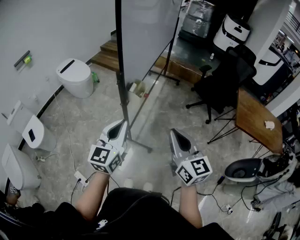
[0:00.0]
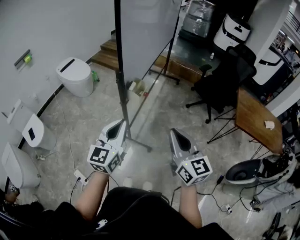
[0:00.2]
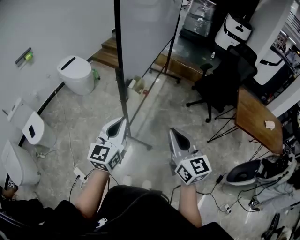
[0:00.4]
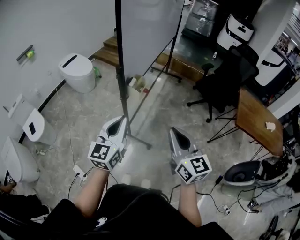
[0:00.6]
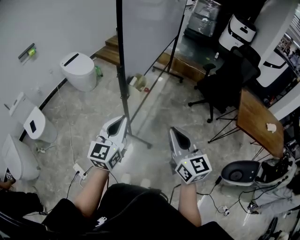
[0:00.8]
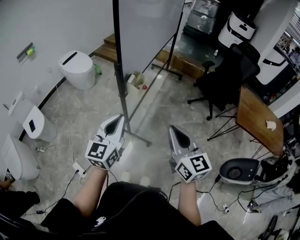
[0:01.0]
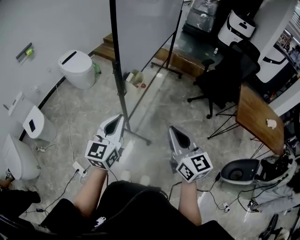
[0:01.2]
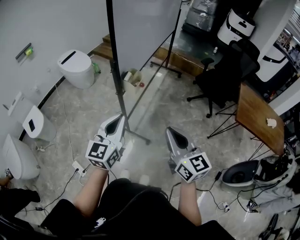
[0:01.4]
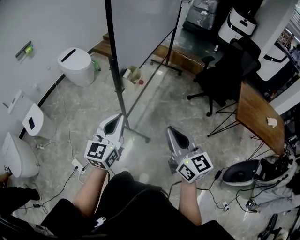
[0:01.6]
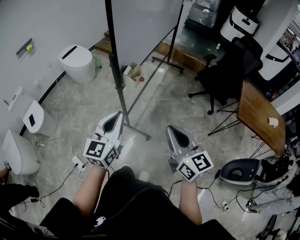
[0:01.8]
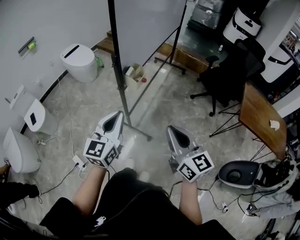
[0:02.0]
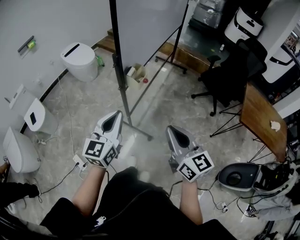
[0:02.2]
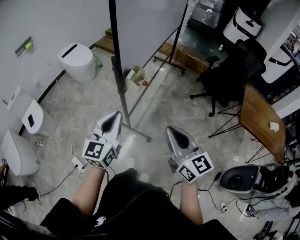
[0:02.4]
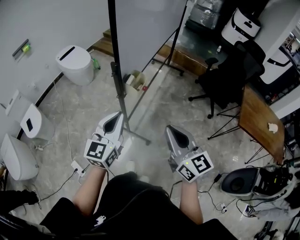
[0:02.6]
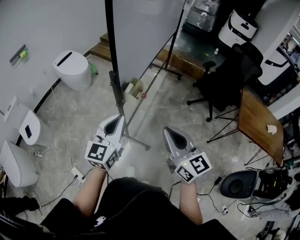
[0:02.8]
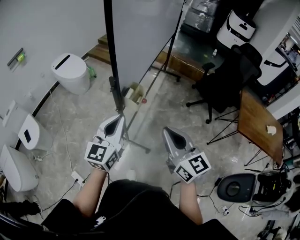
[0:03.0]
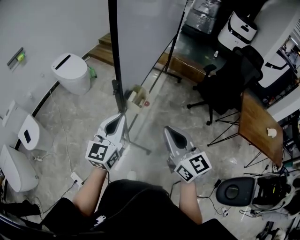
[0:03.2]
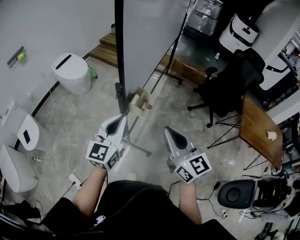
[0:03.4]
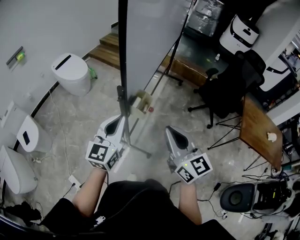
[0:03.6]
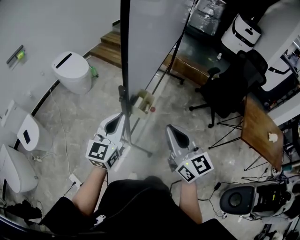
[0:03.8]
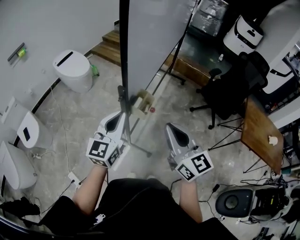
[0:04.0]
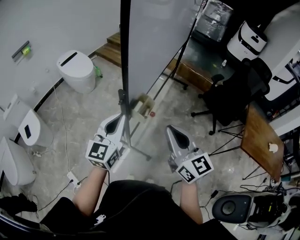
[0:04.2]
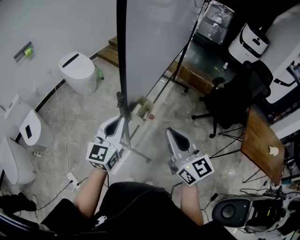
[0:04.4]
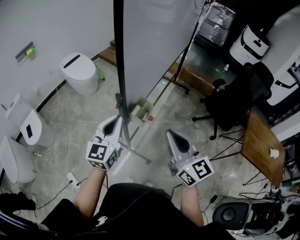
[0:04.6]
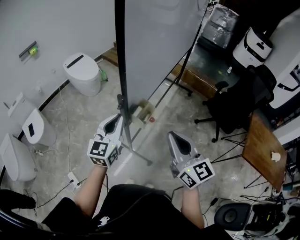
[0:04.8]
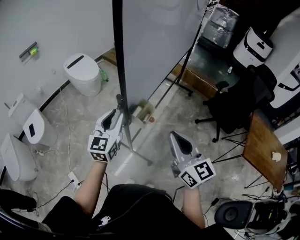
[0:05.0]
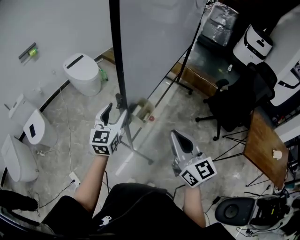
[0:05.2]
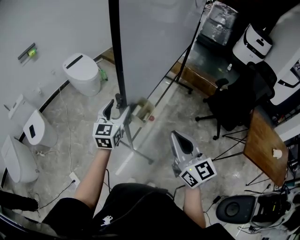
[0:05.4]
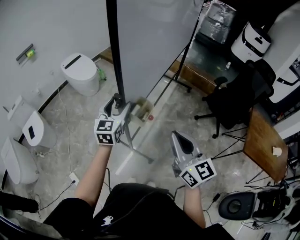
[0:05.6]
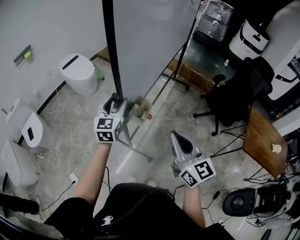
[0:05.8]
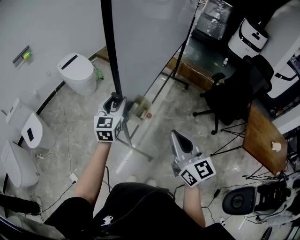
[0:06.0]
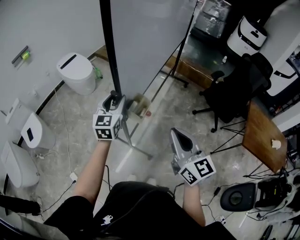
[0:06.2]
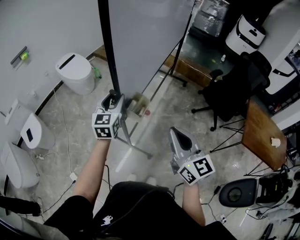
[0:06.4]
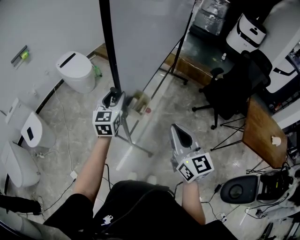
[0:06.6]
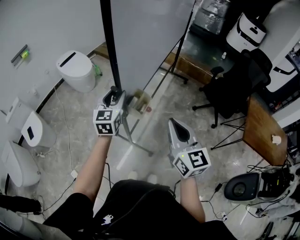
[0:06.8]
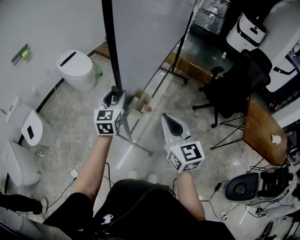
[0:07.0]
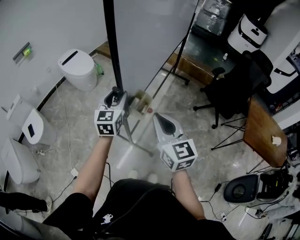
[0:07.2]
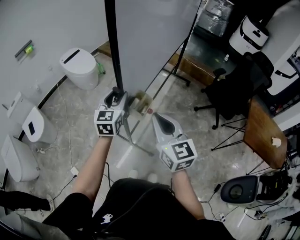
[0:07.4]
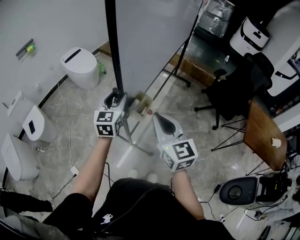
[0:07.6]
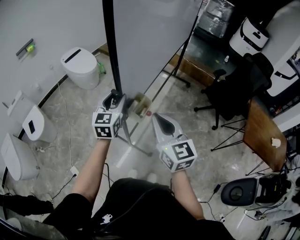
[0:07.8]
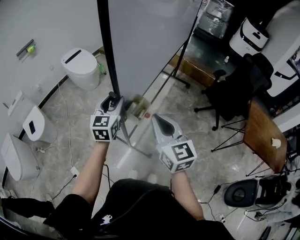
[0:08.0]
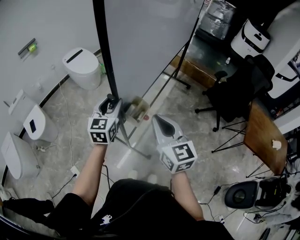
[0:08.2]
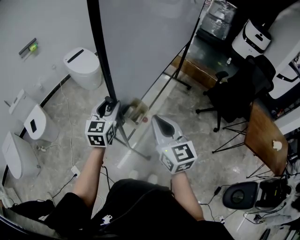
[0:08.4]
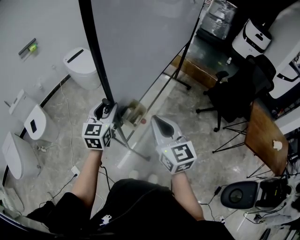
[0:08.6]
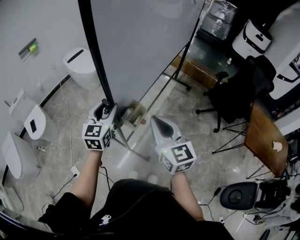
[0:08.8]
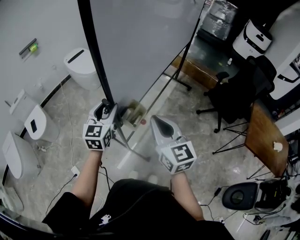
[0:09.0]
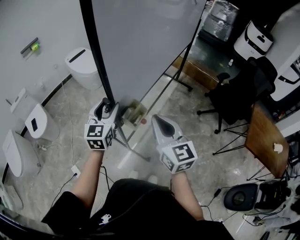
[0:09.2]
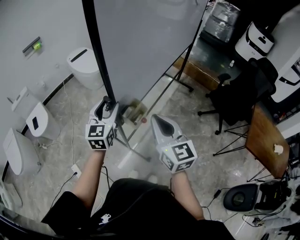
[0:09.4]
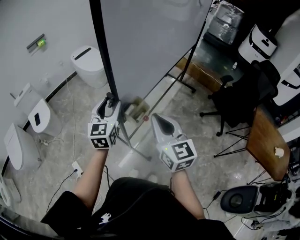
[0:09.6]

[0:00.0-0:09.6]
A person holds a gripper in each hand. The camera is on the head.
0:00.0 to 0:01.6: The right gripper moves some 5 cm; the left gripper moves some 5 cm.
0:01.6 to 0:03.2: Both grippers move forward, approximately 15 cm.
0:03.2 to 0:04.8: The two grippers go roughly 10 cm forward.
0:04.8 to 0:06.4: The left gripper heads forward, covering some 10 cm, and opens.
0:06.4 to 0:08.0: The left gripper shifts some 5 cm backward. Meanwhile the right gripper heads to the left, covering roughly 10 cm.
0:08.0 to 0:09.6: The left gripper is displaced backward by roughly 5 cm.

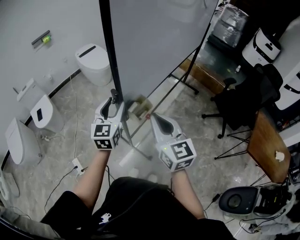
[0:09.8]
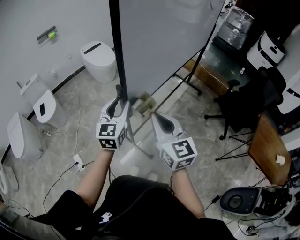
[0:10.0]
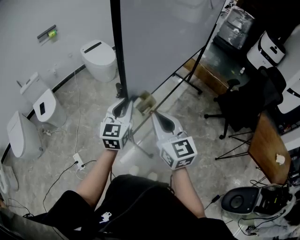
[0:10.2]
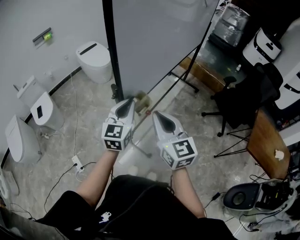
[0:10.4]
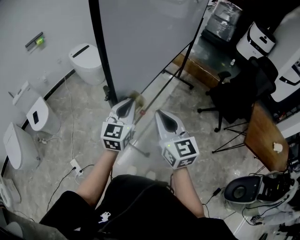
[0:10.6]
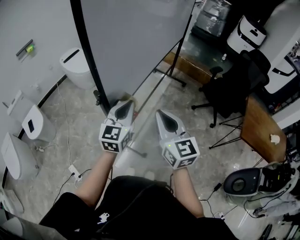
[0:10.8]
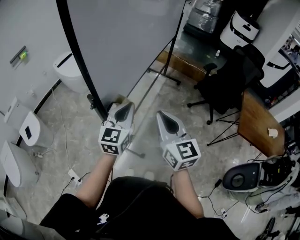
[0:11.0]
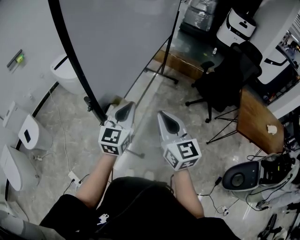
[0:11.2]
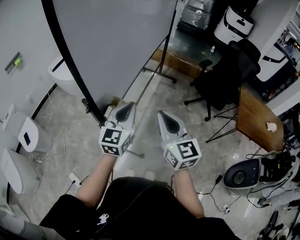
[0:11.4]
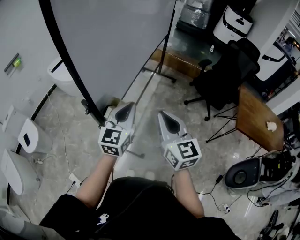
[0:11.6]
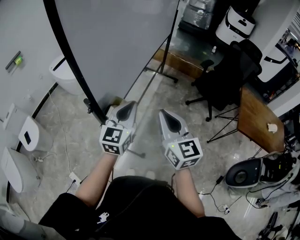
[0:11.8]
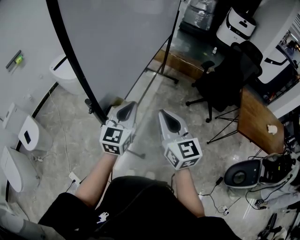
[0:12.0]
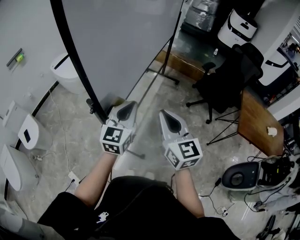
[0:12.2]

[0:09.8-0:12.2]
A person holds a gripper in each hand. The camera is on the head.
0:09.8 to 0:11.0: The right gripper moves to the right, about 5 cm. The left gripper goes about 10 cm to the right, swivels approximately 20 degrees, and closes its fingers.
0:11.0 to 0:12.2: The grippers make only small movements.

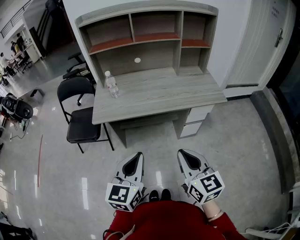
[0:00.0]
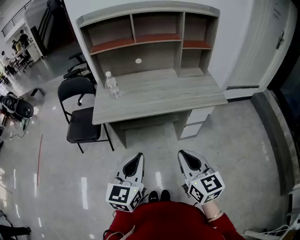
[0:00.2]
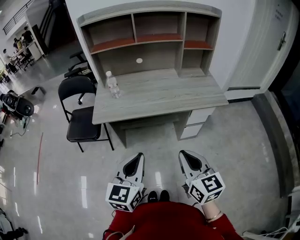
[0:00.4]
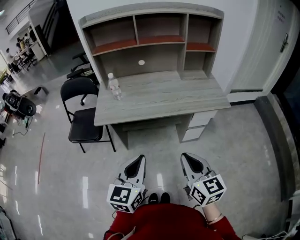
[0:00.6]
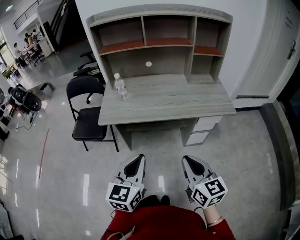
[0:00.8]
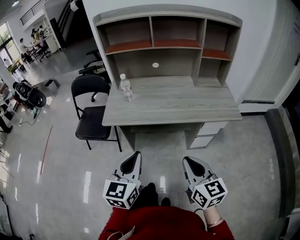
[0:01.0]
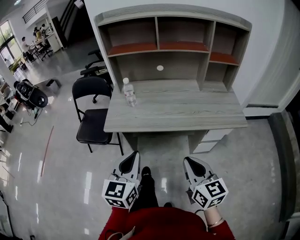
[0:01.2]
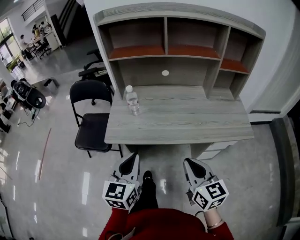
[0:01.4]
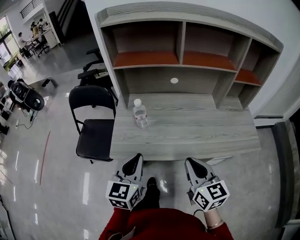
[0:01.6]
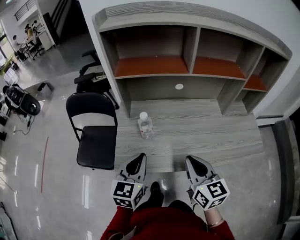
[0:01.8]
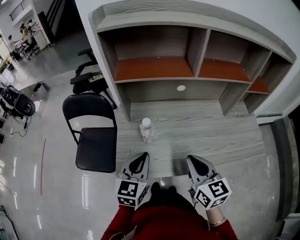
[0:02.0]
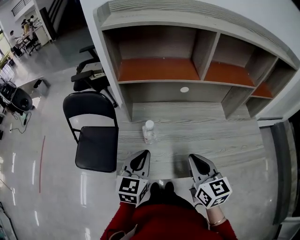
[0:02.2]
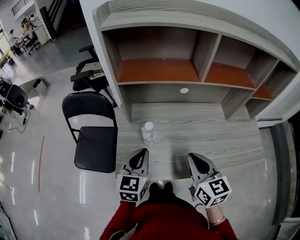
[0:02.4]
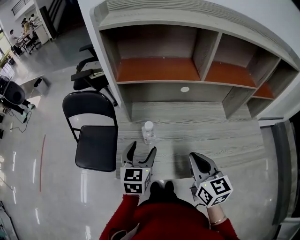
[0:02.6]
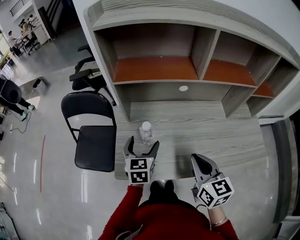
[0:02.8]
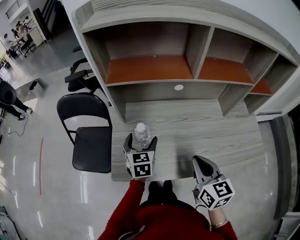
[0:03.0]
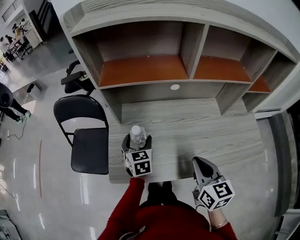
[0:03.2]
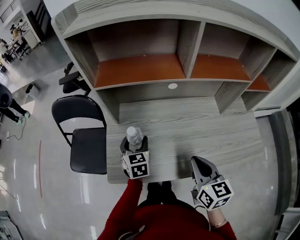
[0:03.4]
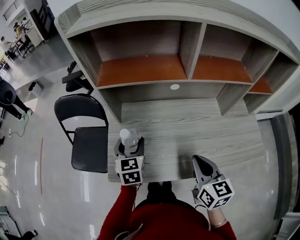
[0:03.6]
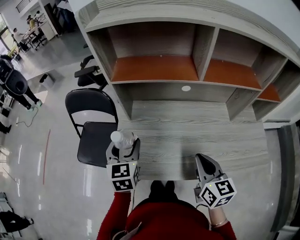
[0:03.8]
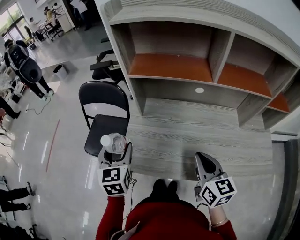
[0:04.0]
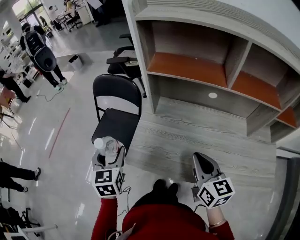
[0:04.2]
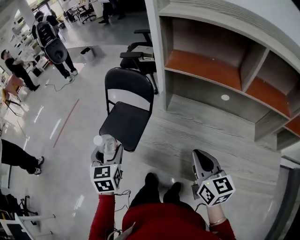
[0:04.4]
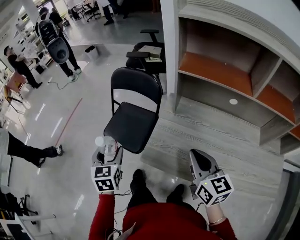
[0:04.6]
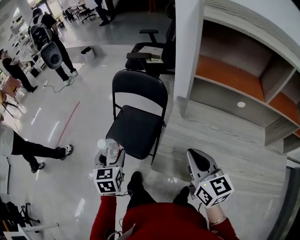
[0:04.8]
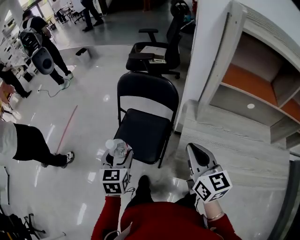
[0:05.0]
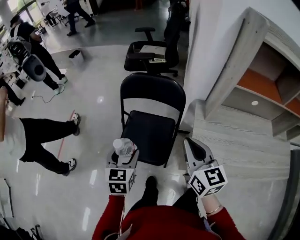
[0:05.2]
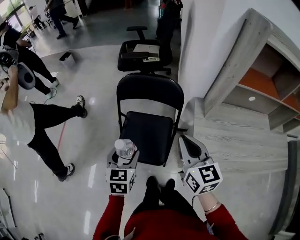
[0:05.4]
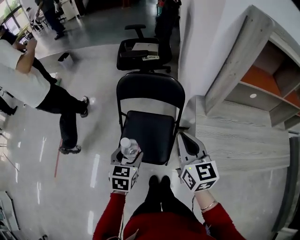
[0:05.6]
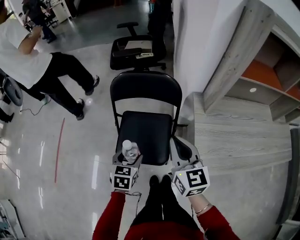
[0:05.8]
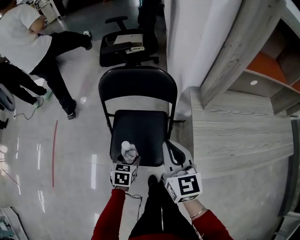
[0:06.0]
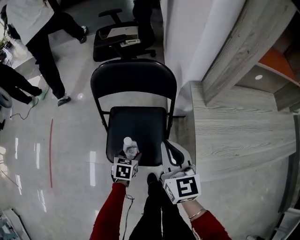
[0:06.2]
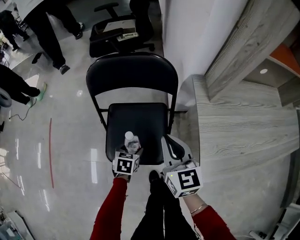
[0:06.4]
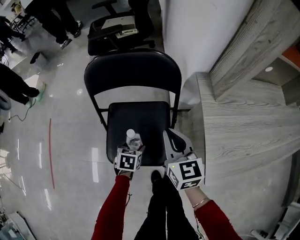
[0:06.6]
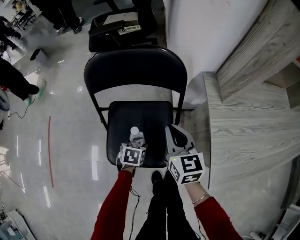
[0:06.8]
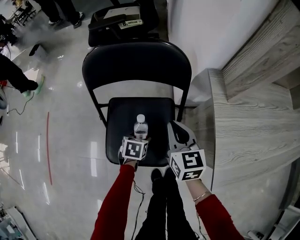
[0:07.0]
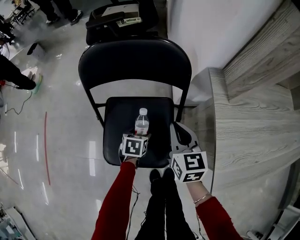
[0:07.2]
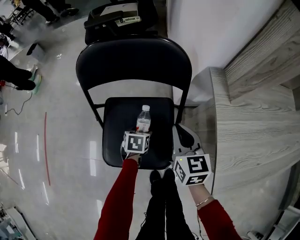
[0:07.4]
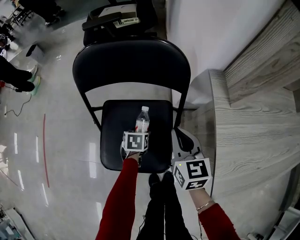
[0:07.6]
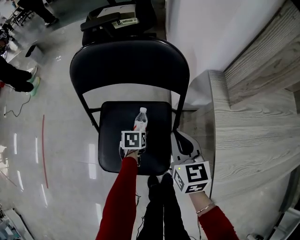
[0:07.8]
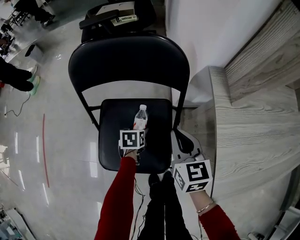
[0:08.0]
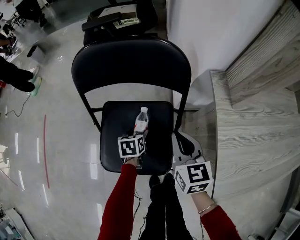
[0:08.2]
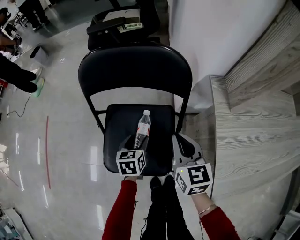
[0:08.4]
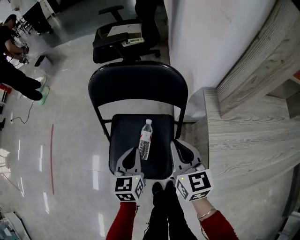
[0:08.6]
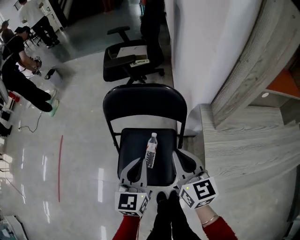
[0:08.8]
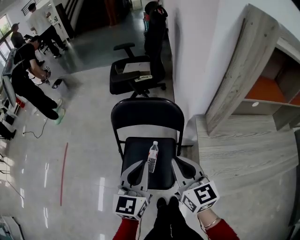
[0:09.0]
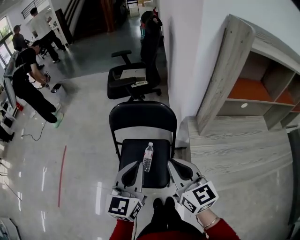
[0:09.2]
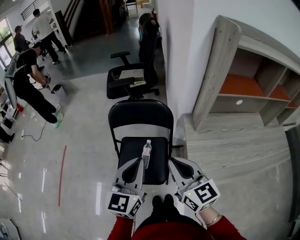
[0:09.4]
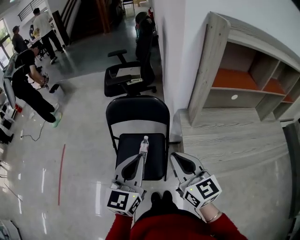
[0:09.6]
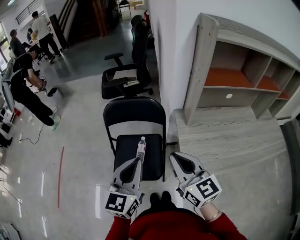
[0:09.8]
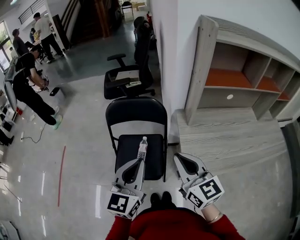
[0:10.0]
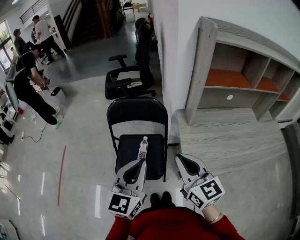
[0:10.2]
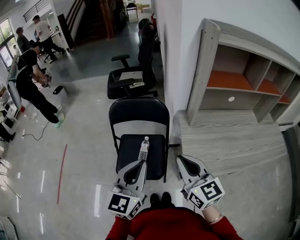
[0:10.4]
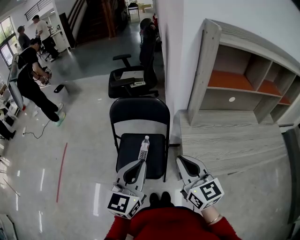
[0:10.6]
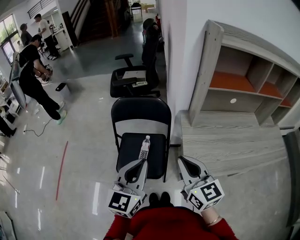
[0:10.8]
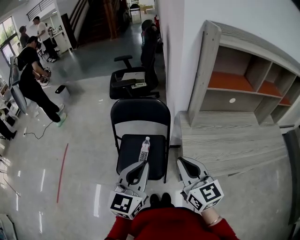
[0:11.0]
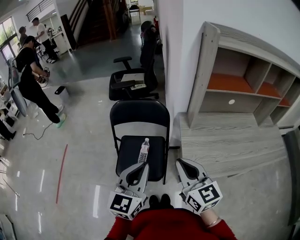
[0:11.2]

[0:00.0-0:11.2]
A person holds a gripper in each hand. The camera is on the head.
0:00.0 to 0:01.6: The left gripper goes roughly 30 cm forward and to the left. Meanwhile the right gripper travels forward by some 25 cm.
0:01.6 to 0:03.2: The left gripper moves forward and downward, approximately 25 cm, rotates roughly 20 degrees, and opens up. The right gripper goes roughly 10 cm forward.
0:03.2 to 0:04.8: The right gripper shifts by approximately 25 cm, and swivels some 30 degrees; the left gripper changes place by about 35 cm, and turns by roughly 20 degrees.
0:04.8 to 0:06.4: The right gripper ends up approximately 30 cm from where it was, and swivels roughly 20 degrees, while the left gripper travels downward by about 30 cm, and swivels about 50 degrees.
0:06.4 to 0:08.0: The grippers both shift downward and forward by some 15 cm.
0:08.0 to 0:09.6: The right gripper heads upward and backward, covering about 35 cm, and rotates about 20 degrees, while the left gripper goes roughly 50 cm upward, tilts its fingers about 60 degrees upward, and closes.
0:09.6 to 0:11.2: The left gripper heads backward, covering approximately 5 cm; the right gripper ends up about 5 cm from where it was.
